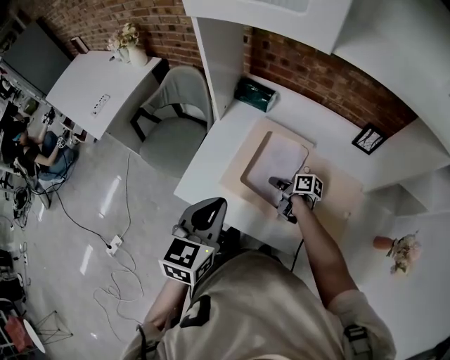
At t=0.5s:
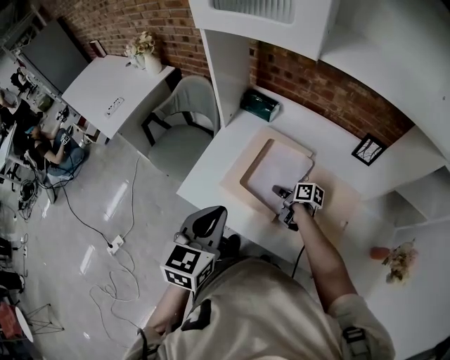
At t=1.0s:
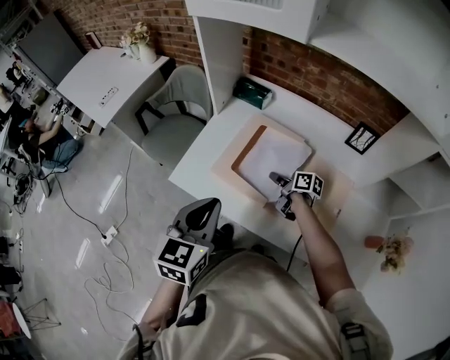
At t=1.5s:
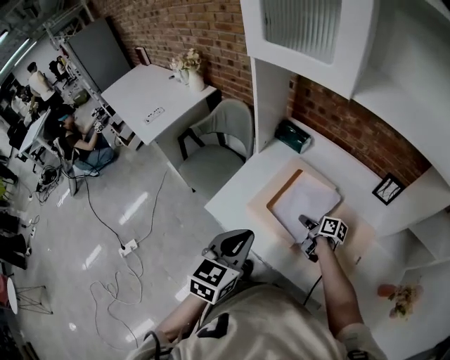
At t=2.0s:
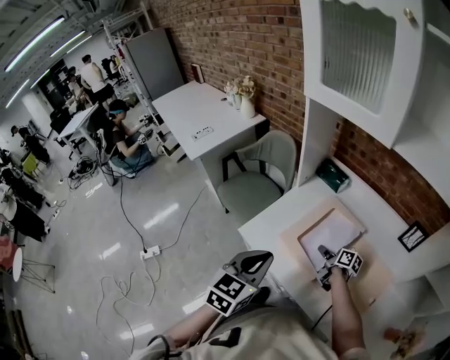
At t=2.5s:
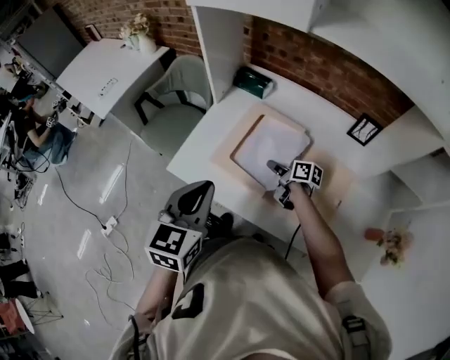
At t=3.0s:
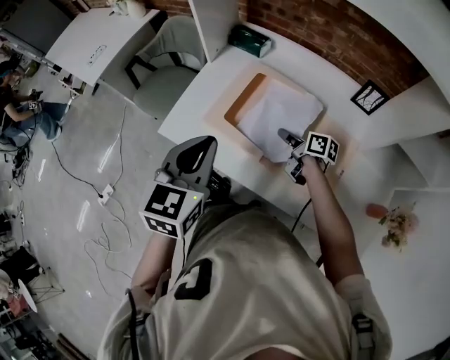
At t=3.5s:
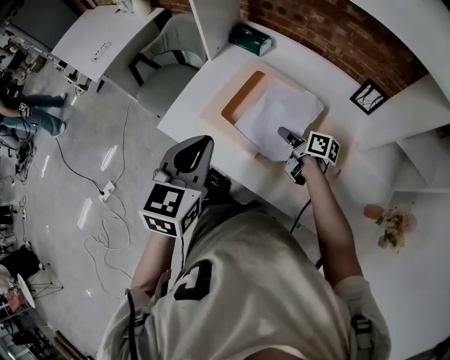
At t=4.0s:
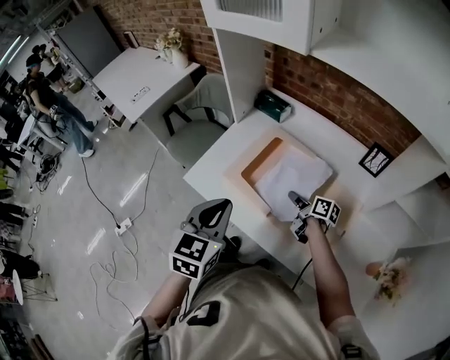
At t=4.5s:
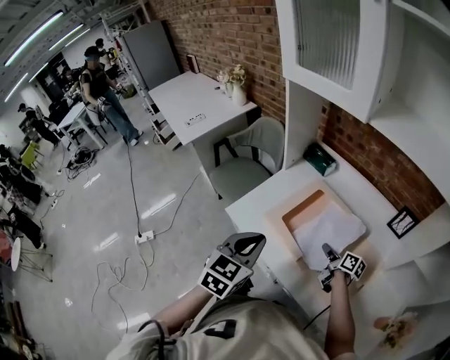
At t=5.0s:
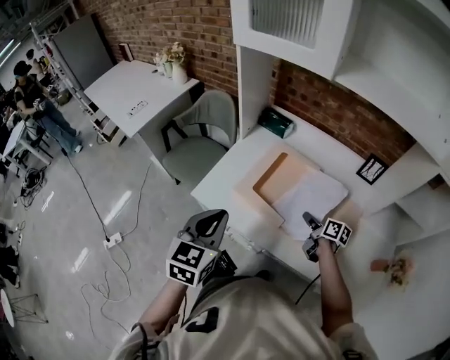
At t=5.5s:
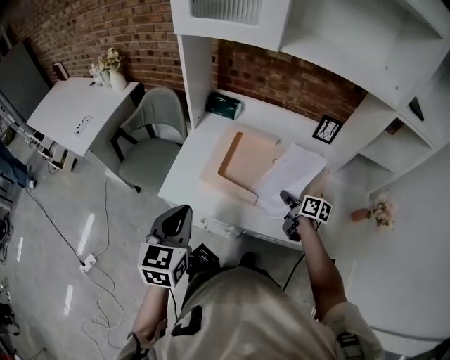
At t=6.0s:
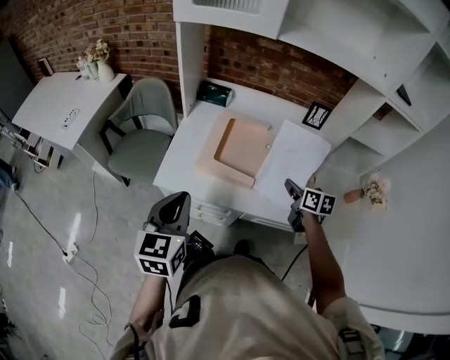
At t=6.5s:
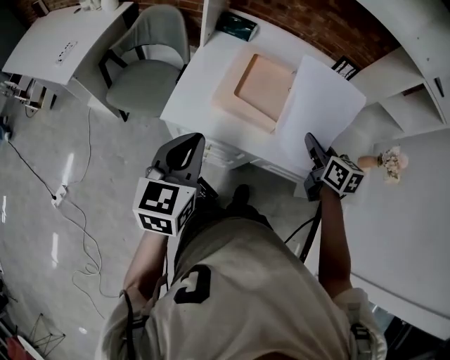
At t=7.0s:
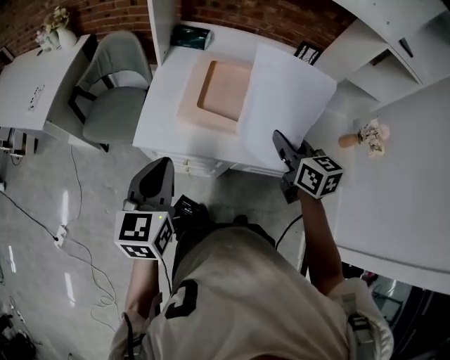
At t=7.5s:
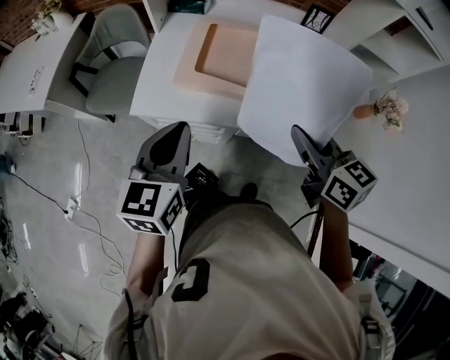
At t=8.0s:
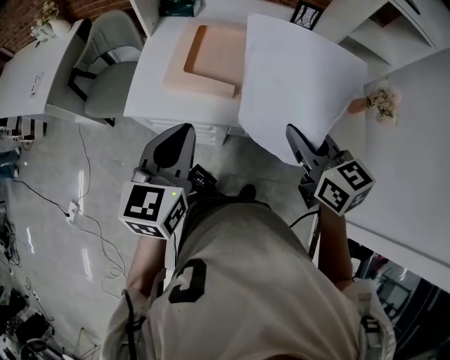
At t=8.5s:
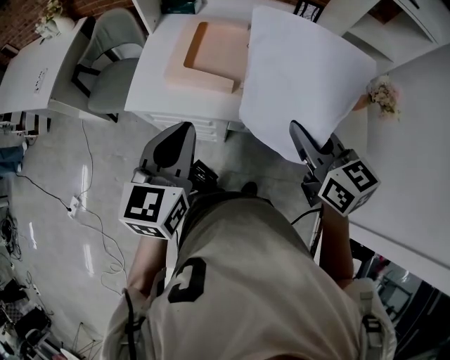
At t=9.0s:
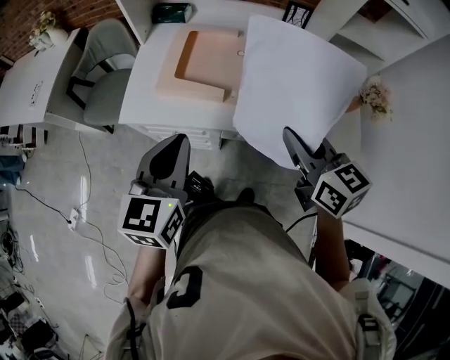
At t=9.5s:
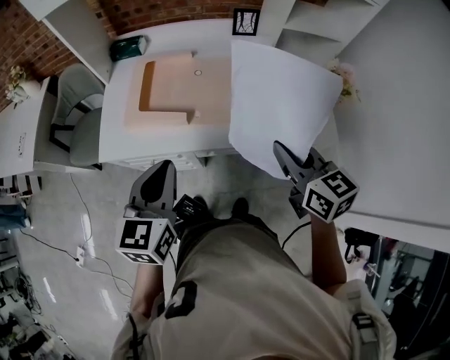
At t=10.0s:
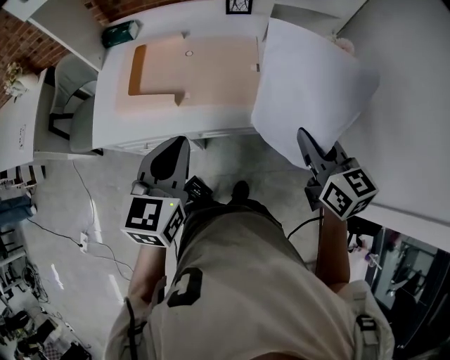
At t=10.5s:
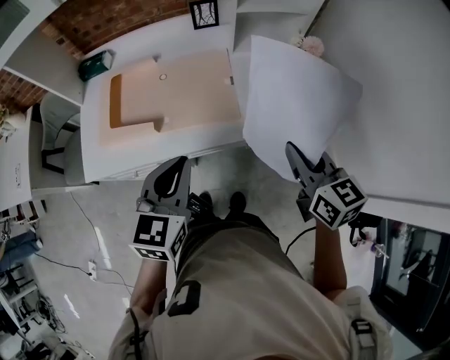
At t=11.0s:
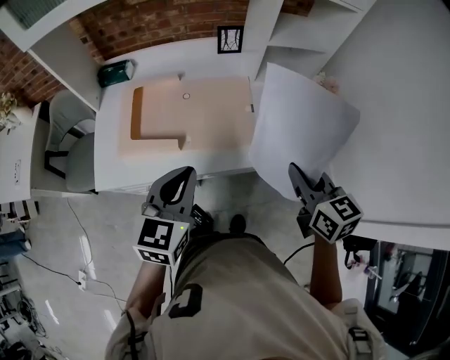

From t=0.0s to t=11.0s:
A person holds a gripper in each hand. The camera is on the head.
From t=0.0s to t=2.0s: The left gripper heads backward, covering about 5 cm.
From t=2.0s to t=3.5s: The right gripper travels to the right and backward by roughly 10 cm, while the left gripper heads to the right, covering some 5 cm.
From t=3.5s to t=5.5s: The right gripper heads backward, covering some 10 cm, and turns by about 20 degrees; the left gripper is displaced to the left by roughly 10 cm.
From t=5.5s to t=7.5s: The right gripper travels upward and backward by roughly 25 cm, and turns by roughly 30 degrees.
From t=7.5s to t=9.0s: The left gripper travels to the right by some 5 cm.
From t=9.0s to t=11.0s: The left gripper moves to the right and forward, some 15 cm, and swivels approximately 20 degrees; the right gripper is displaced to the right by roughly 15 cm, and swivels approximately 20 degrees.

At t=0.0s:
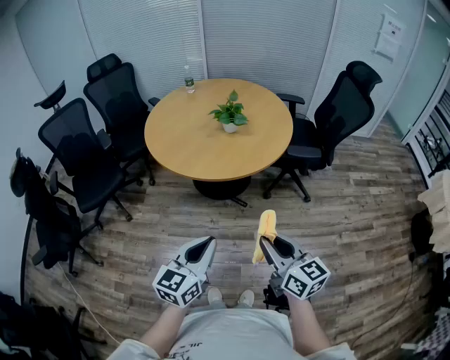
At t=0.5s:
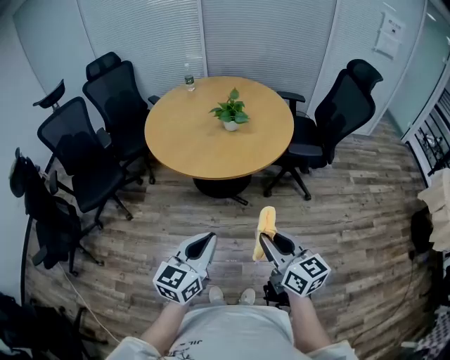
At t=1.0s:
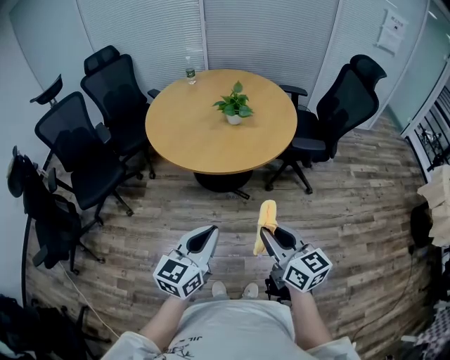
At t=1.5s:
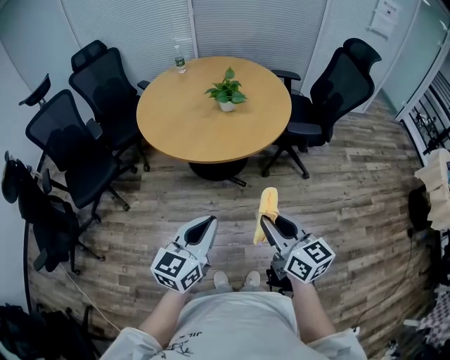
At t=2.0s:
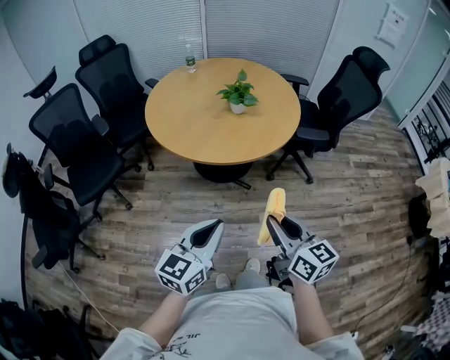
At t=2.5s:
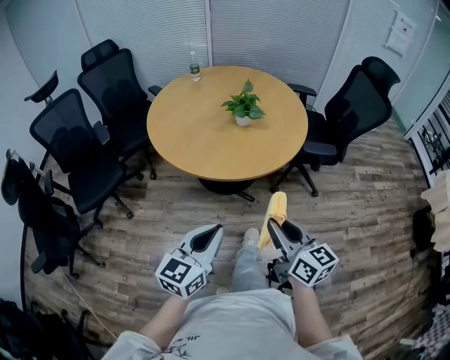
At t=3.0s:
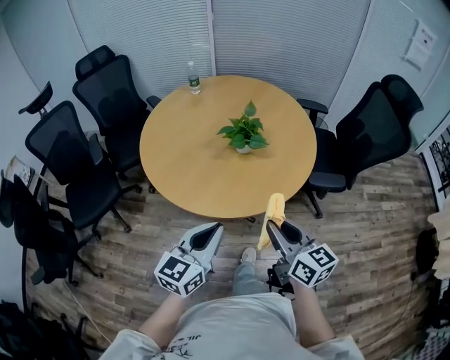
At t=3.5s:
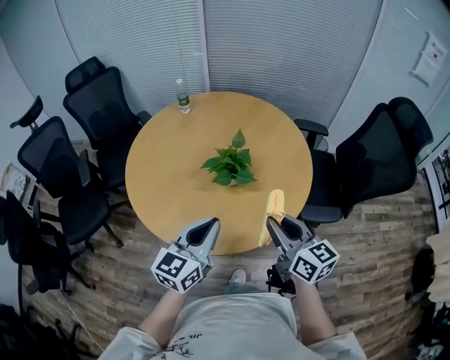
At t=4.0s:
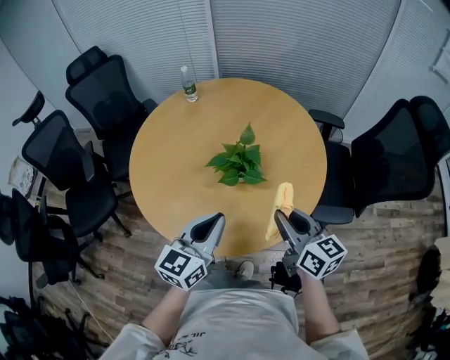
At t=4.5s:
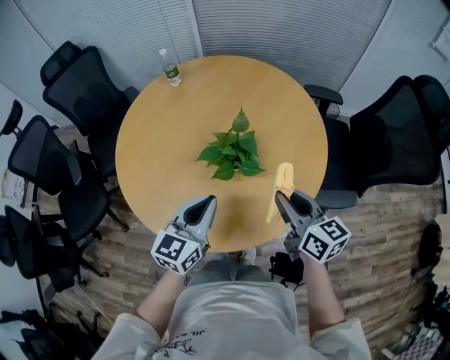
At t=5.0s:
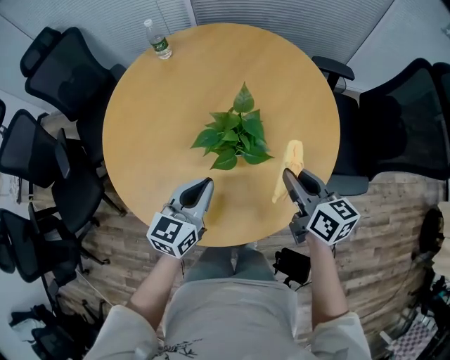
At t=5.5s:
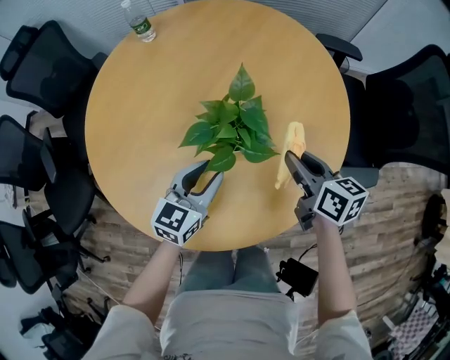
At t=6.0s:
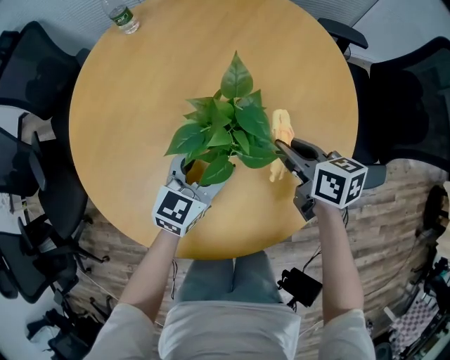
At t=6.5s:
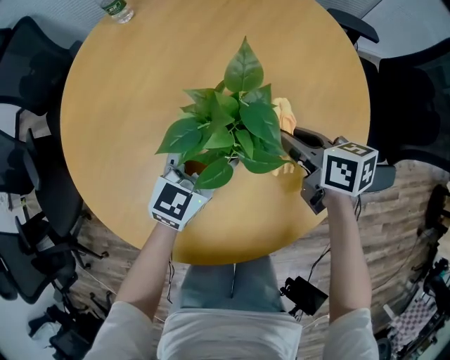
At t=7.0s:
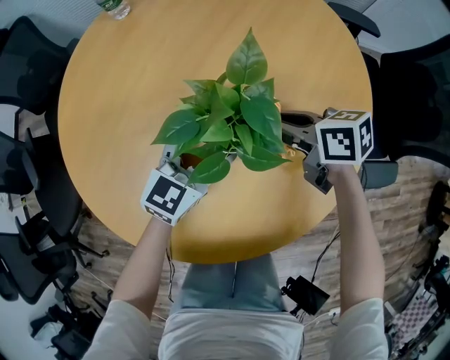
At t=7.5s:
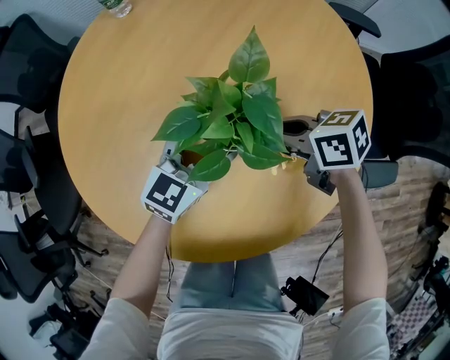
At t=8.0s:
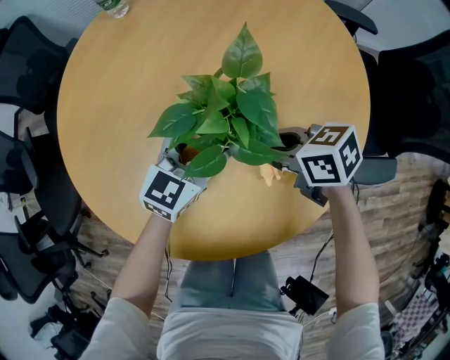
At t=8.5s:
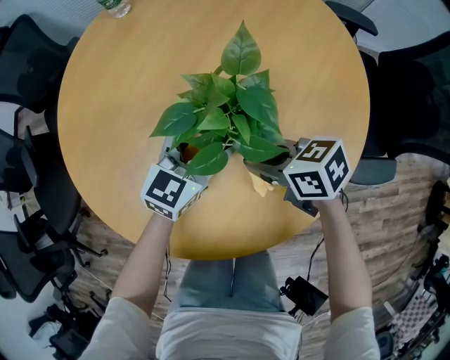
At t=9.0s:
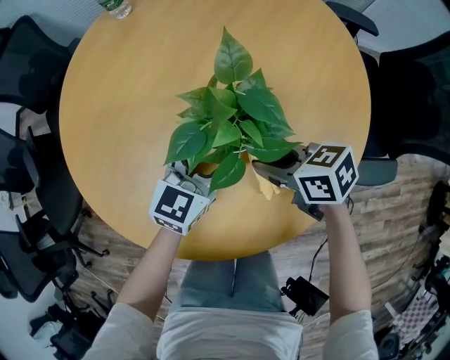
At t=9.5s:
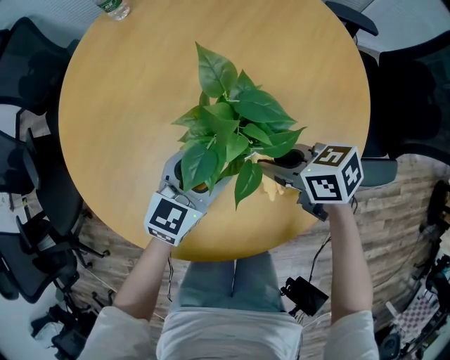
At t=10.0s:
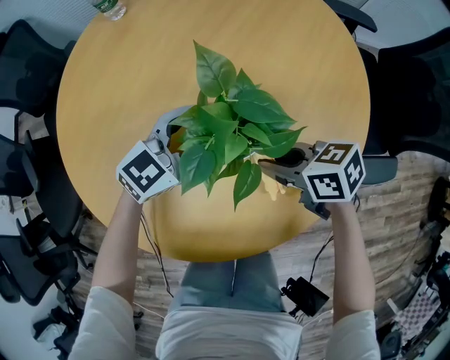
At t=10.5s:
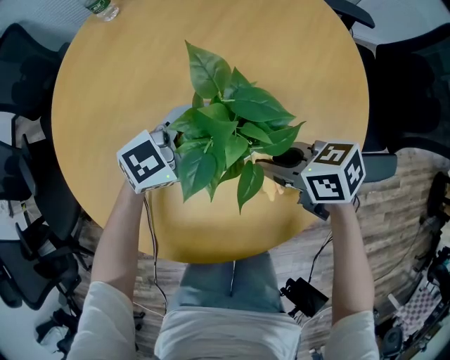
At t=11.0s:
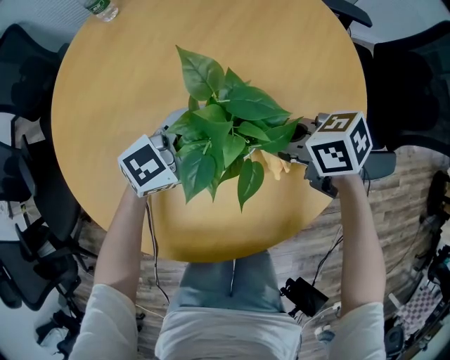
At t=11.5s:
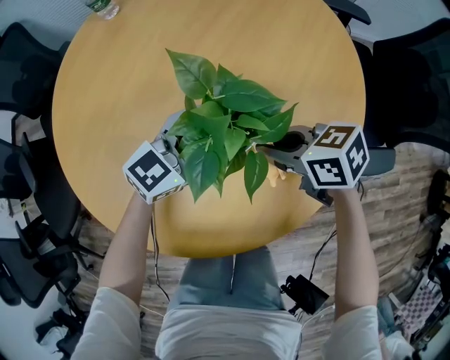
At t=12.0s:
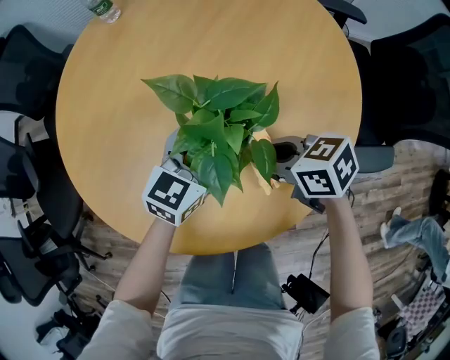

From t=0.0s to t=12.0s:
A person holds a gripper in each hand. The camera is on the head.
From t=0.0s to t=2.0s: Both grippers travel together to the left, roughly 5 cm.
From t=2.0s to t=4.0s: The pair of grippers is taken forward, about 50 cm.
From t=4.0s to t=6.0s: The two grippers go some 30 cm downward and forward. The right gripper rotates approximately 30 degrees. Meanwhile the left gripper swivels some 20 degrees, and opens.
From t=6.0s to t=8.0s: The right gripper moves to the left, some 5 cm, and changes its angle by about 30 degrees.
From t=8.0s to t=10.0s: The left gripper rotates approximately 20 degrees.
From t=10.0s to t=12.0s: The left gripper swivels some 20 degrees.

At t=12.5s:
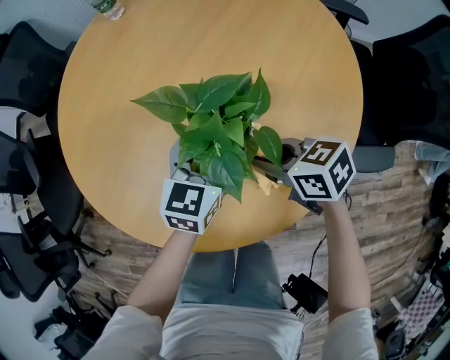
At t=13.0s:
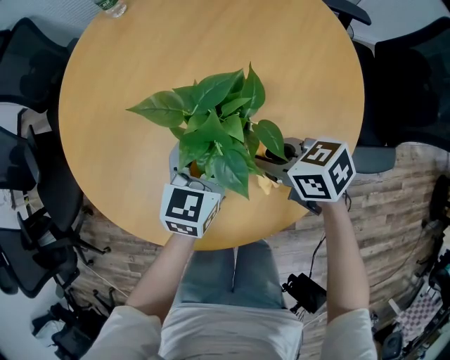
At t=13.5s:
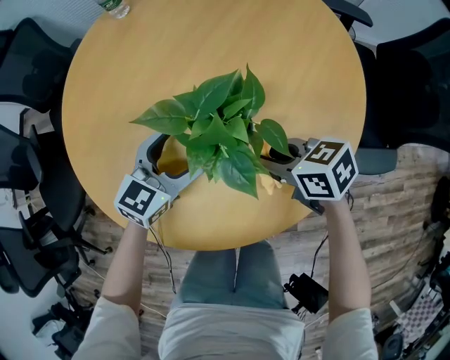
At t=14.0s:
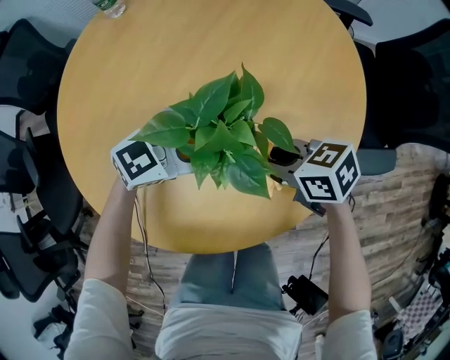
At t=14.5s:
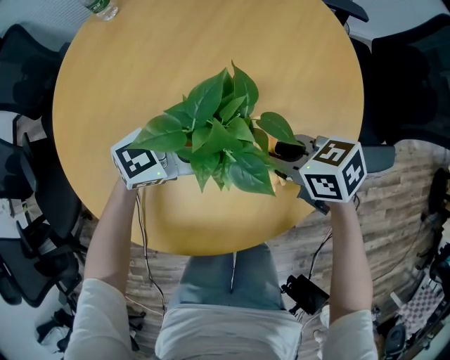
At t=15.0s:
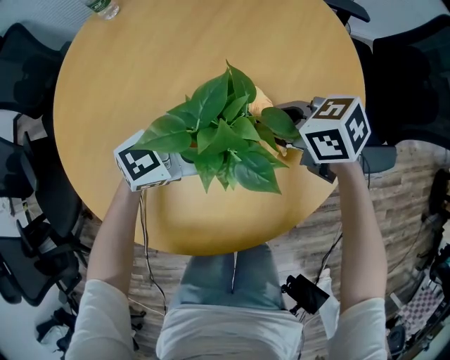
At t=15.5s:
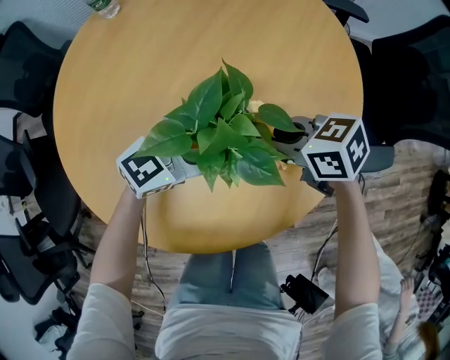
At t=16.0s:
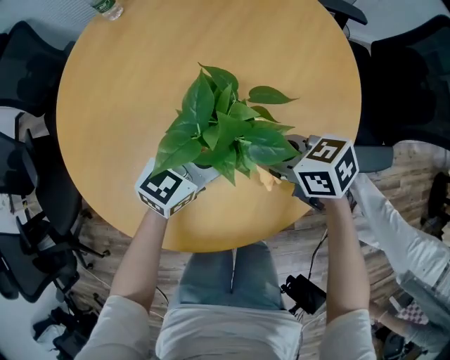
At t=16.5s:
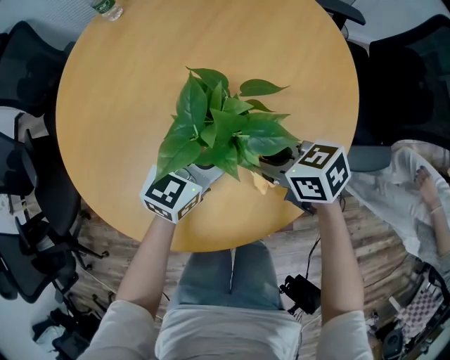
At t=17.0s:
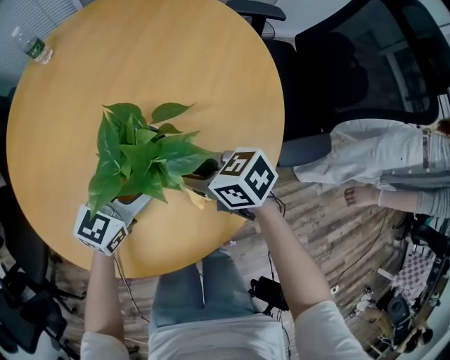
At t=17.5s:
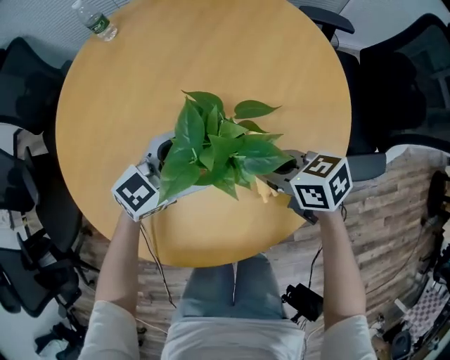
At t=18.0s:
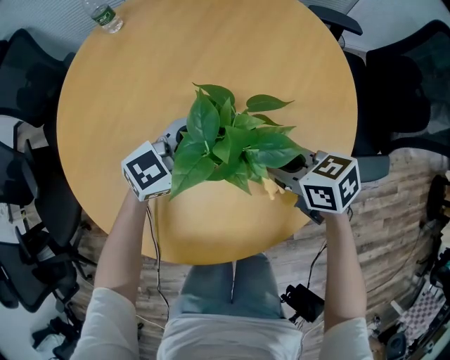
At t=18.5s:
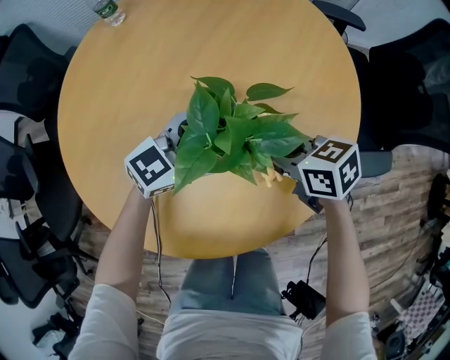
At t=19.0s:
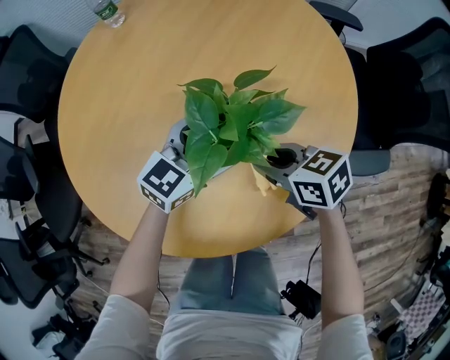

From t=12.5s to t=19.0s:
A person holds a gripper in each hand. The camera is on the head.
From t=12.5s to t=14.5s: The left gripper changes its angle by approximately 50 degrees.
From t=14.5s to t=17.0s: The left gripper swivels approximately 30 degrees.
